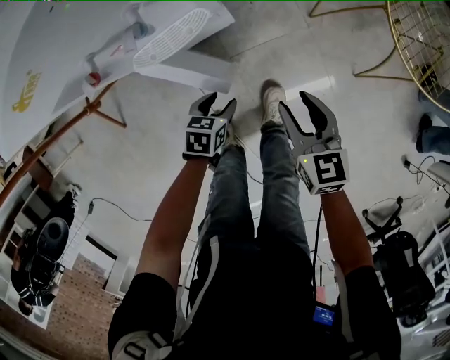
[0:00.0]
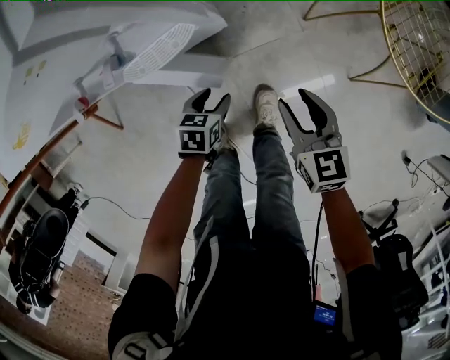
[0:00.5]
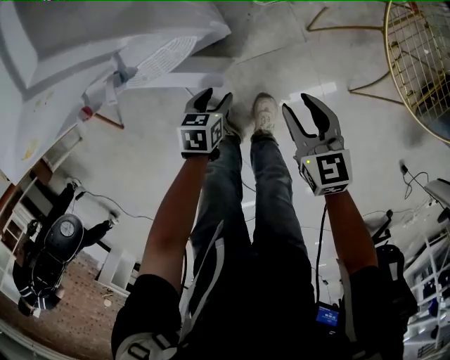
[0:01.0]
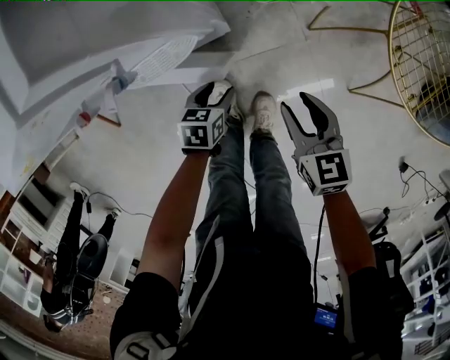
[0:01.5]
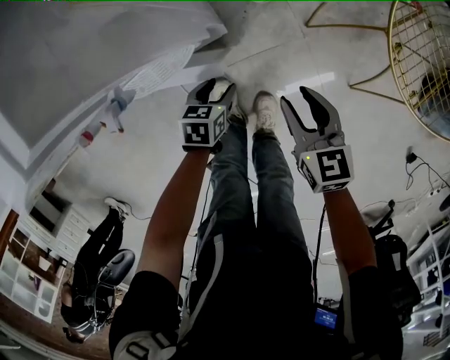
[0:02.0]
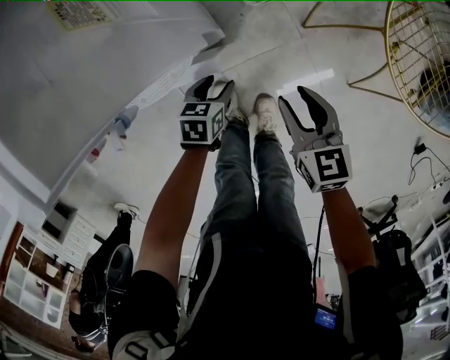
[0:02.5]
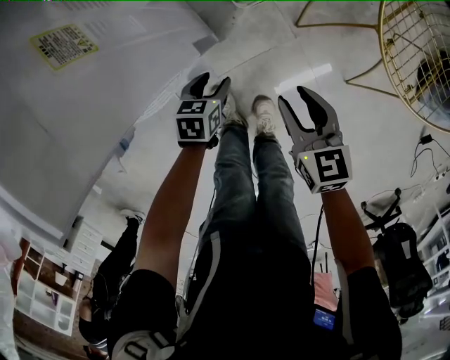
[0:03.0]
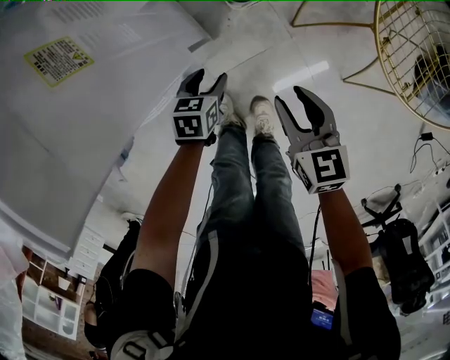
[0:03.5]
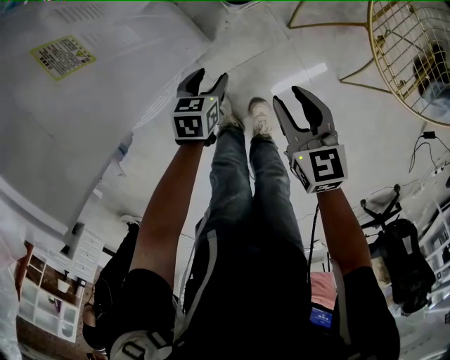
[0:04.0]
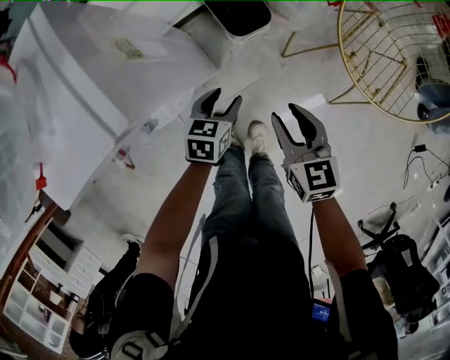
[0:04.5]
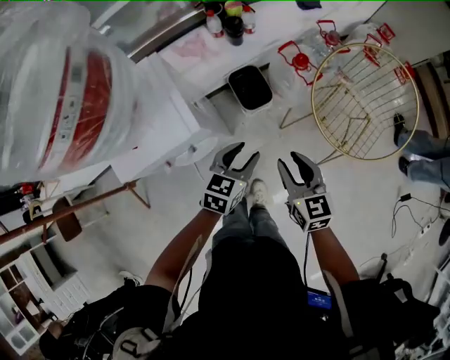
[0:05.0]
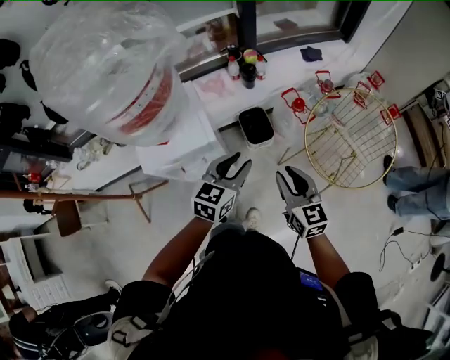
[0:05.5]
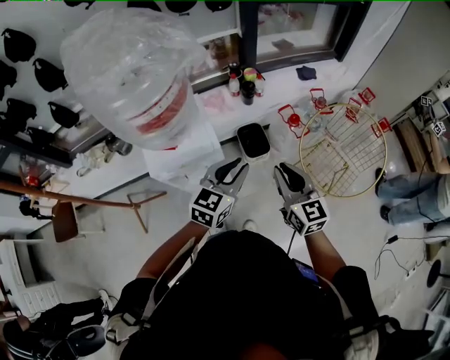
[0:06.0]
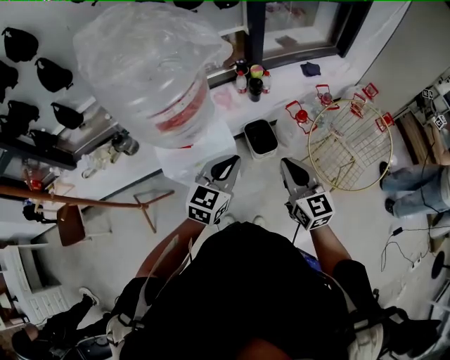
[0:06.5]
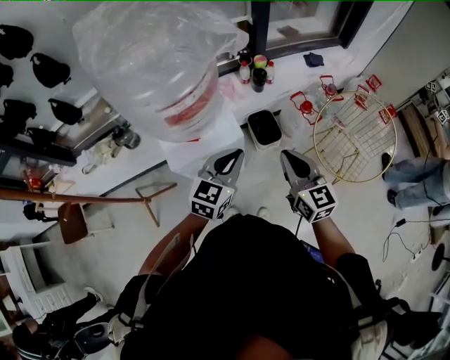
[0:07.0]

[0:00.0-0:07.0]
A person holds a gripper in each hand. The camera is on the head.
0:00.0 to 0:02.0: Both grippers travel together forward, roughly 10 cm.
0:02.0 to 0:03.5: The left gripper goes roughly 10 cm forward.
0:03.5 to 0:05.0: The grippers both shift upward by some 35 cm. The left gripper changes its angle by about 30 degrees.
0:05.0 to 0:07.0: The two grippers go approximately 25 cm upward and to the left. The left gripper rotates roughly 20 degrees, and closes up. Meanwhile the right gripper closes.

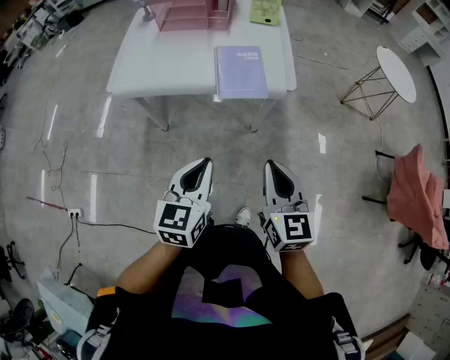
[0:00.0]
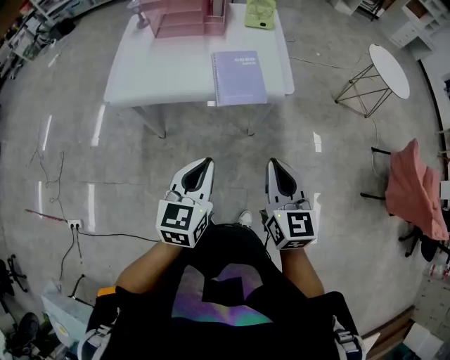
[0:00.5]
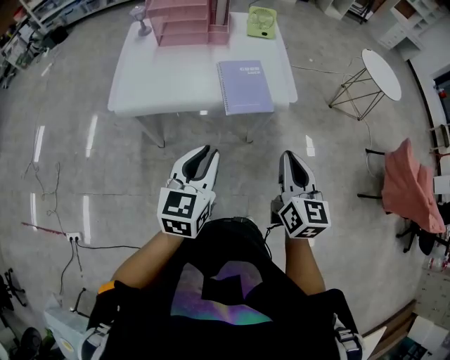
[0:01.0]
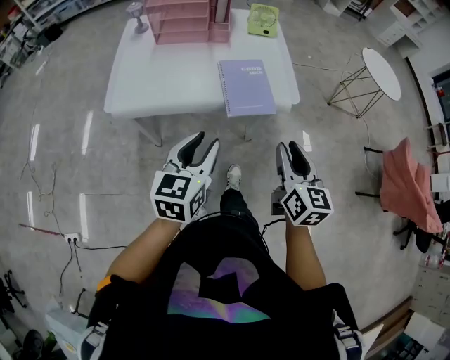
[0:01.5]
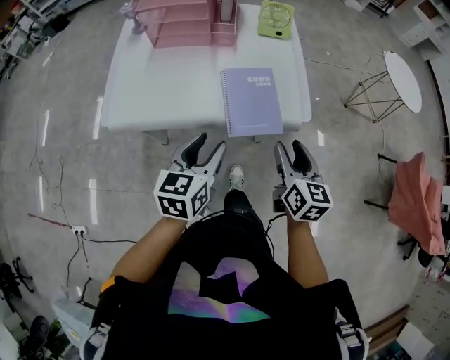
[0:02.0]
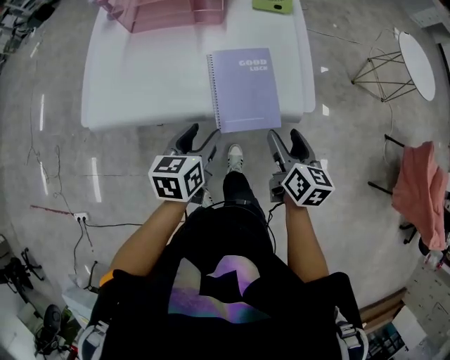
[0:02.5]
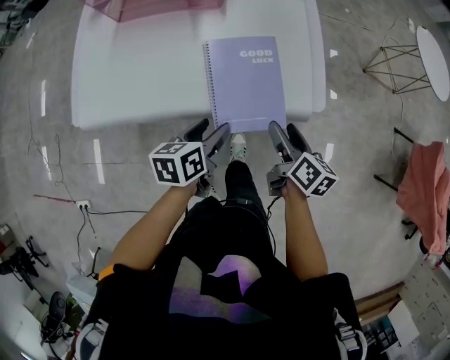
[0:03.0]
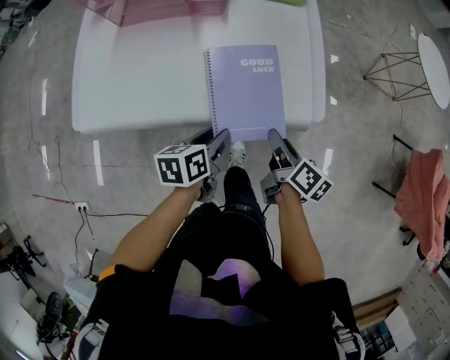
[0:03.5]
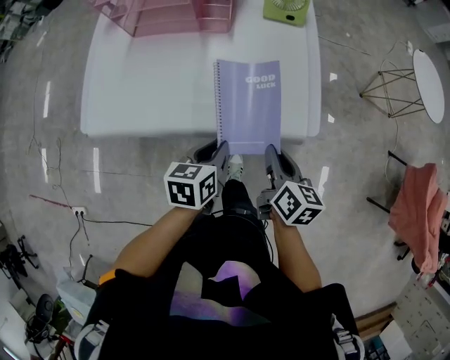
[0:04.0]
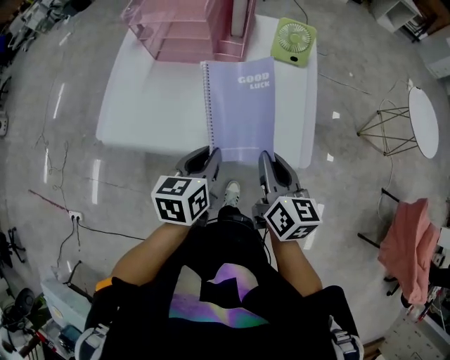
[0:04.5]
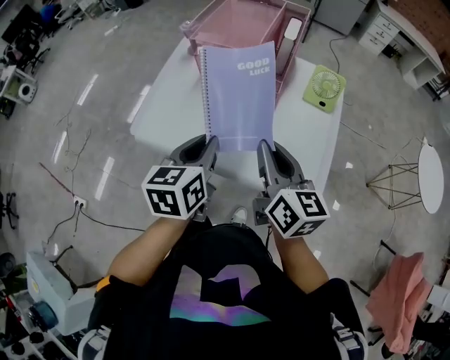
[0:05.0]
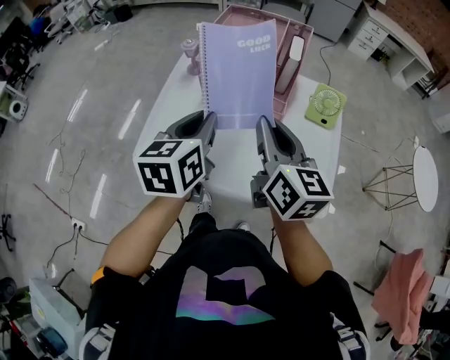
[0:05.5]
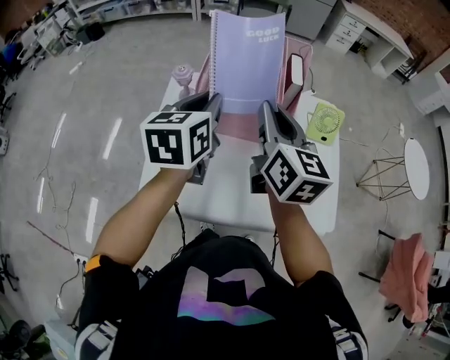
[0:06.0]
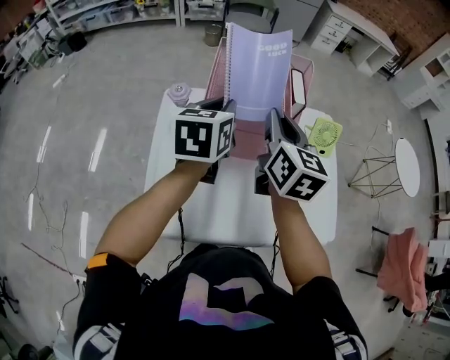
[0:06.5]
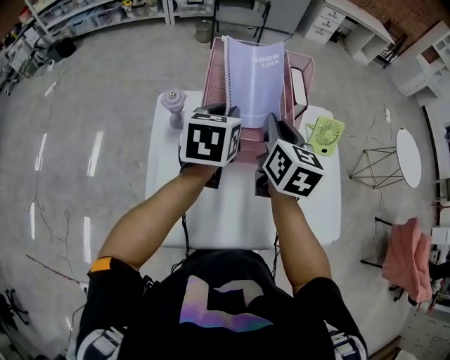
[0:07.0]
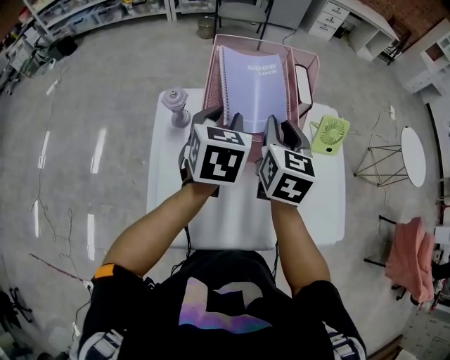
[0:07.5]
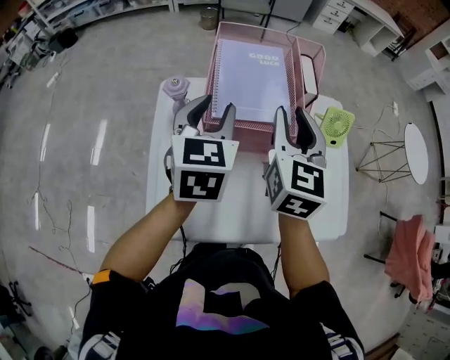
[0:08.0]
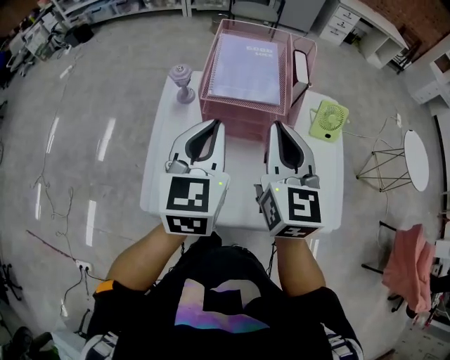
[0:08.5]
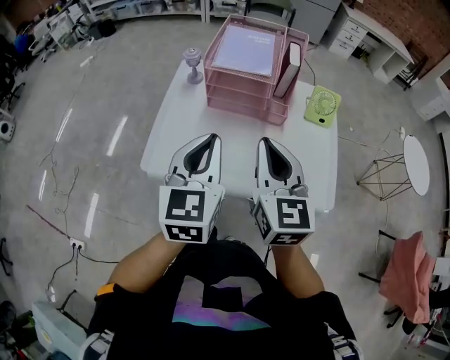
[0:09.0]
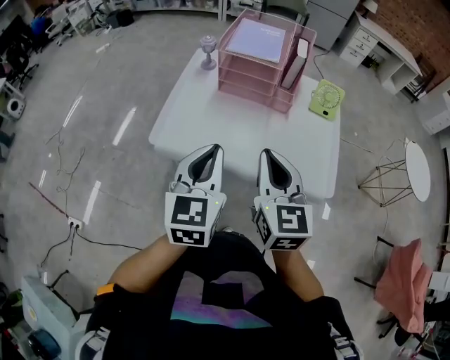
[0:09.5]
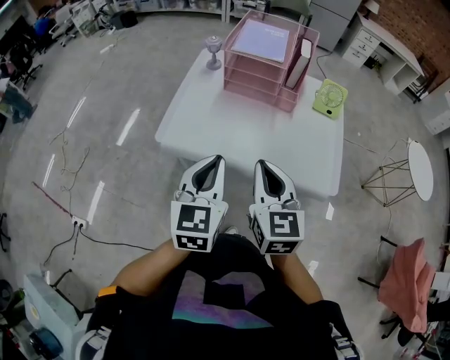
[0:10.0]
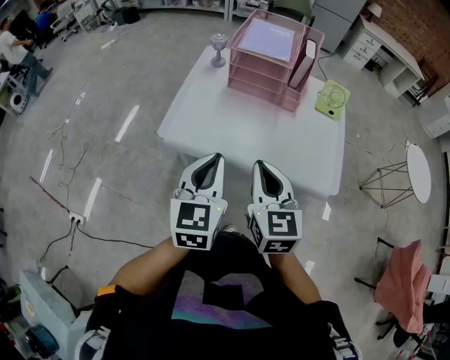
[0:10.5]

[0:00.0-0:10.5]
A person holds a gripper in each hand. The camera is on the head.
0:00.0 to 0:02.0: Both grippers move forward, approximately 20 cm. The right gripper opens up; the left gripper opens.
0:02.0 to 0:04.0: Both grippers travel together downward and forward, some 15 cm. The right gripper turns by about 20 degrees, and closes its fingers. The left gripper turns by approximately 20 degrees, and closes.
0:04.0 to 0:06.5: The two grippers travel together, roughly 50 cm. The right gripper swivels roughly 30 degrees, while the left gripper turns by some 20 degrees.
0:06.5 to 0:08.5: Both grippers travel together backward, some 10 cm. The left gripper rotates roughly 20 degrees, and opens, then closes once more.
0:08.5 to 0:10.5: Both grippers travel together backward, approximately 30 cm.

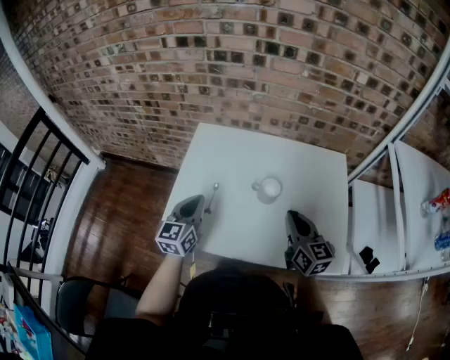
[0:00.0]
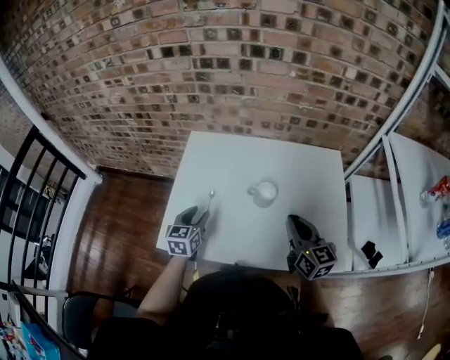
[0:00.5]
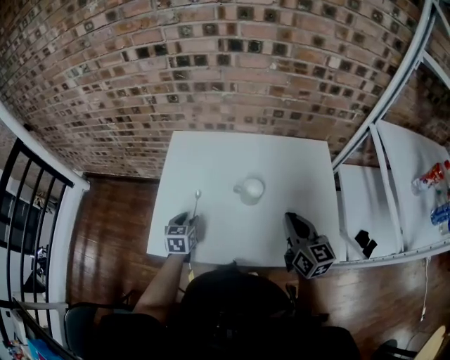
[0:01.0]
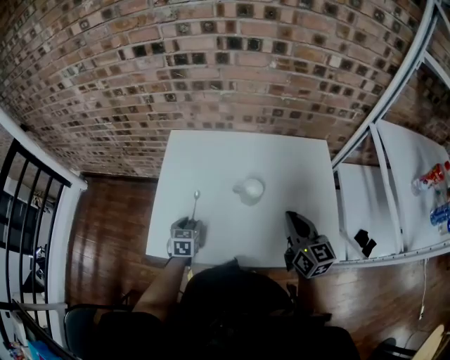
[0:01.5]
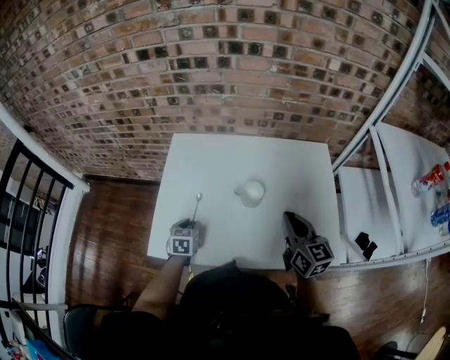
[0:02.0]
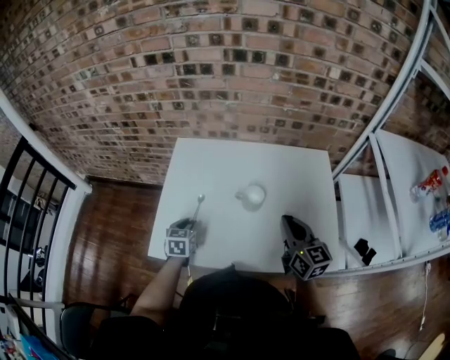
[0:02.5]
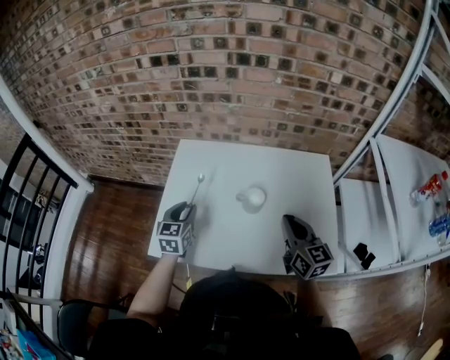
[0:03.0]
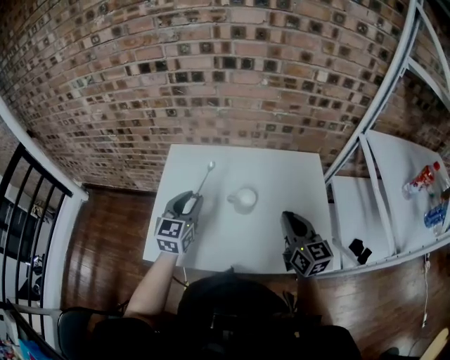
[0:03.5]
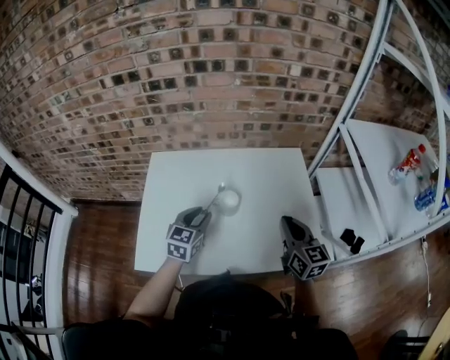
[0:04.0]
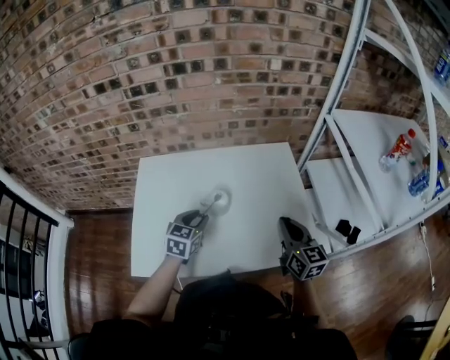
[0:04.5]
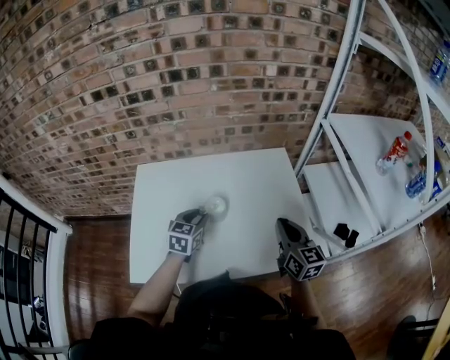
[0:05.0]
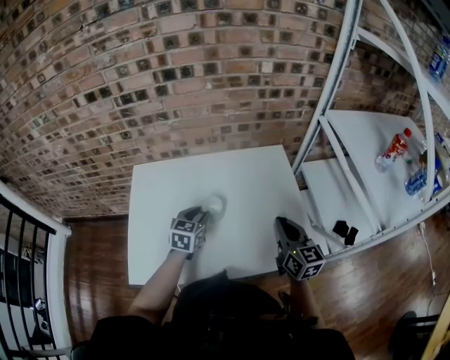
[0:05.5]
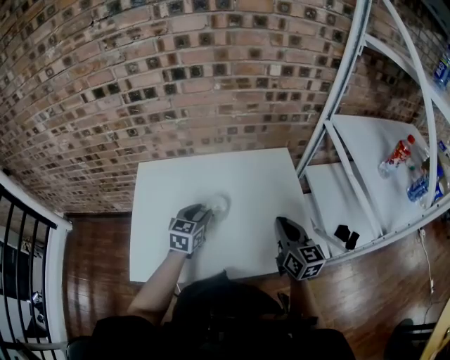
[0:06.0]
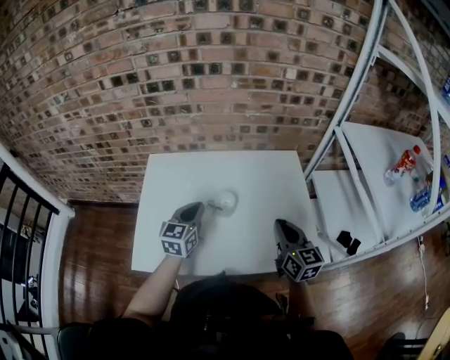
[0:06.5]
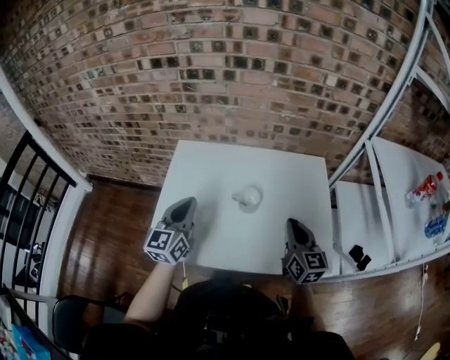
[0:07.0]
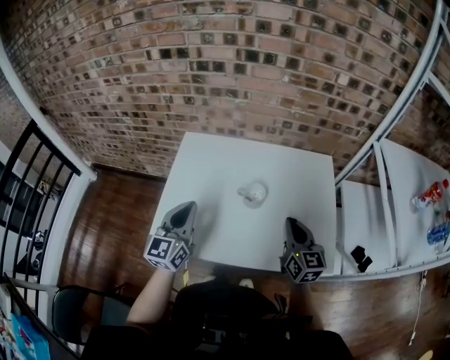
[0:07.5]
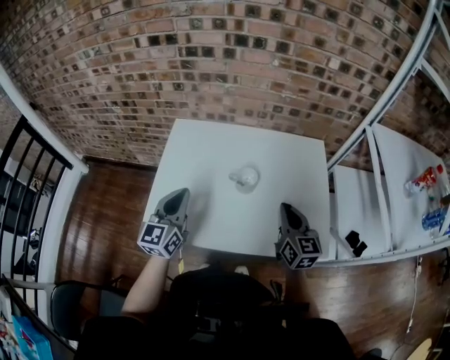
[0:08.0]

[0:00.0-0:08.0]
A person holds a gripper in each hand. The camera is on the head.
0:00.0 to 0:02.0: The left gripper moves downward, roughly 20 cm, angles its fingers downward, by roughly 30 degrees, and opens.
0:02.0 to 0:04.0: The left gripper heads upward and to the right, covering some 25 cm, and turns by some 30 degrees, while the right gripper travels to the right by approximately 5 cm.
0:04.0 to 0:06.0: The left gripper is displaced forward by roughly 5 cm.
0:06.0 to 0:08.0: The right gripper shifts roughly 5 cm to the left. The left gripper travels to the left, backward and upward by roughly 20 cm, changes its angle by roughly 30 degrees, and closes.

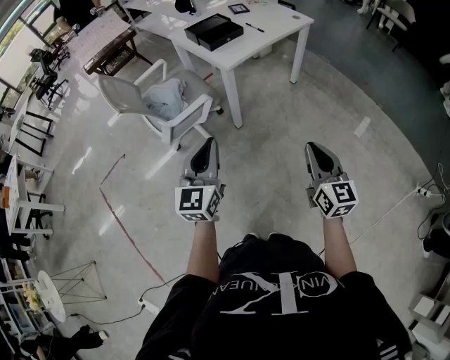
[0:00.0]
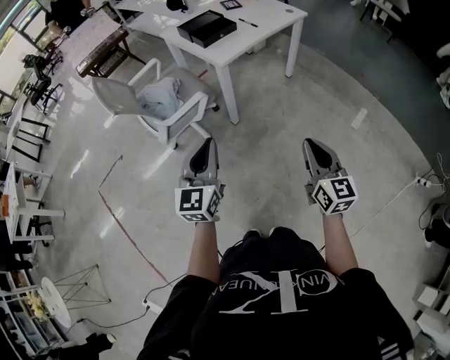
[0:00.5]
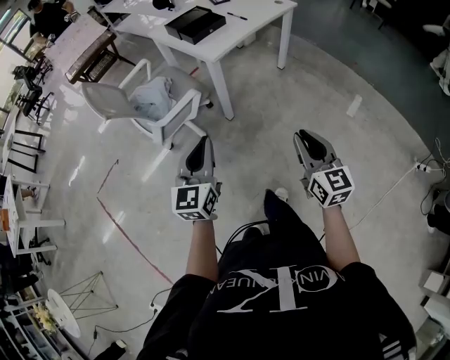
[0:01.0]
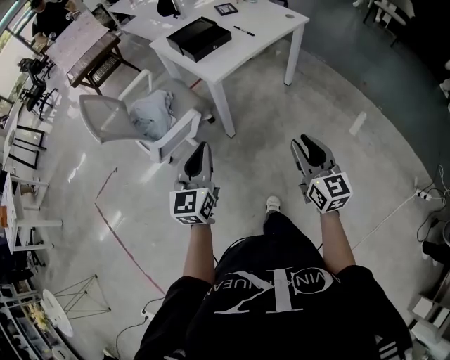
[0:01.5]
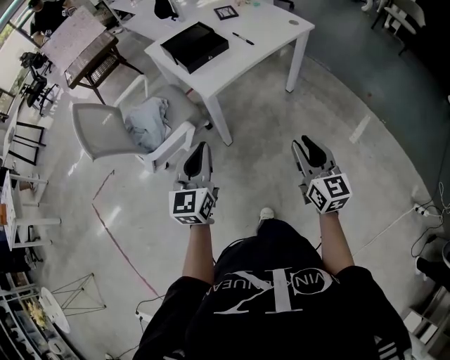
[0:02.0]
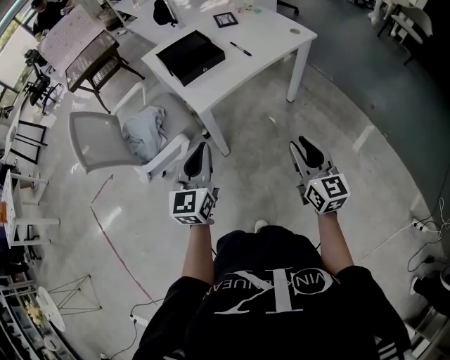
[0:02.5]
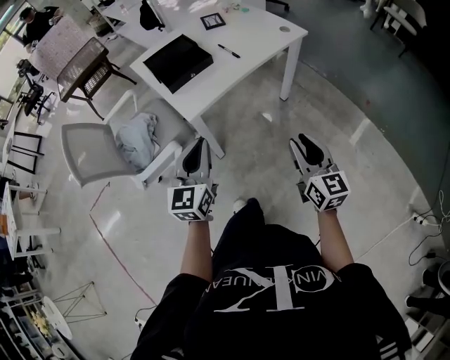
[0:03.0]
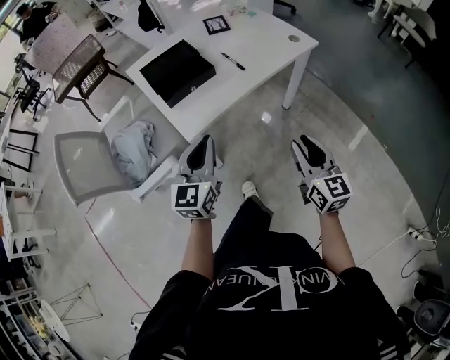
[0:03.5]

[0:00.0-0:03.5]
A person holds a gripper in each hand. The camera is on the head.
0:00.0 to 0:02.0: The grippers both shift forward by some 20 cm.
0:02.0 to 0:03.5: The grippers both shift forward and to the right by roughly 20 cm.
